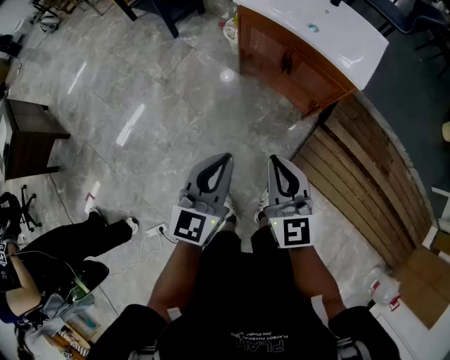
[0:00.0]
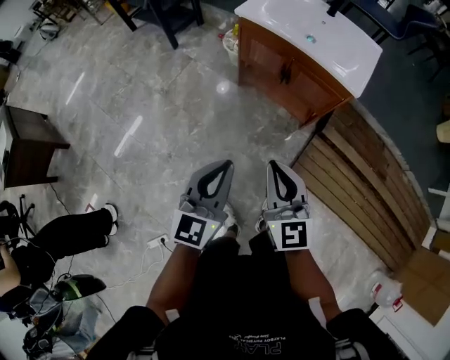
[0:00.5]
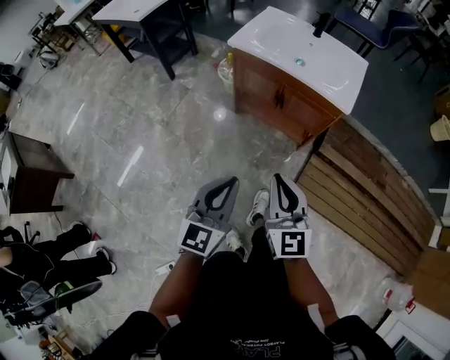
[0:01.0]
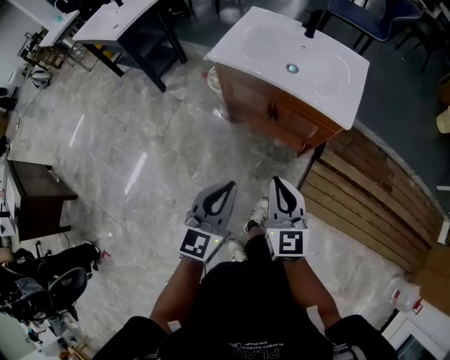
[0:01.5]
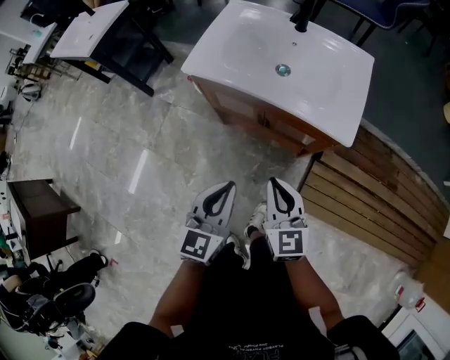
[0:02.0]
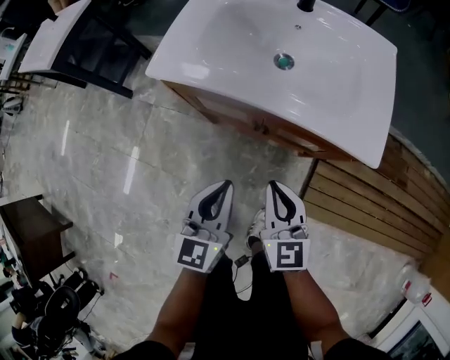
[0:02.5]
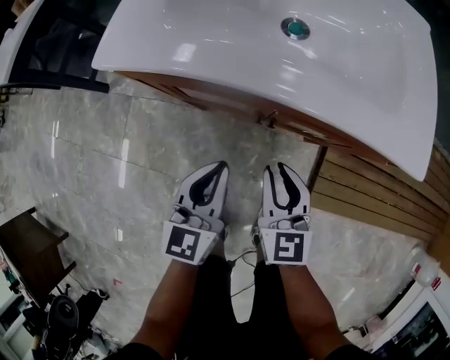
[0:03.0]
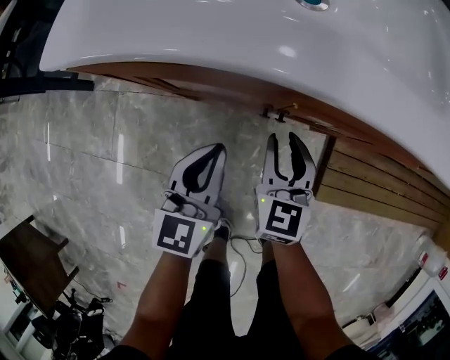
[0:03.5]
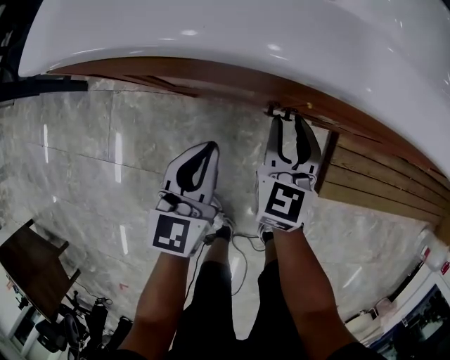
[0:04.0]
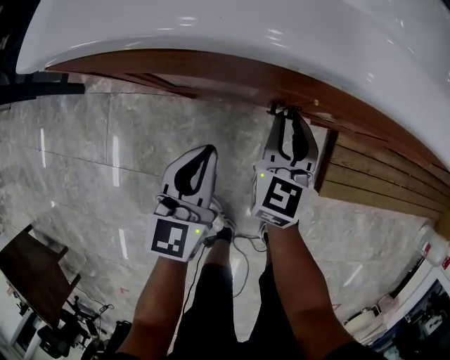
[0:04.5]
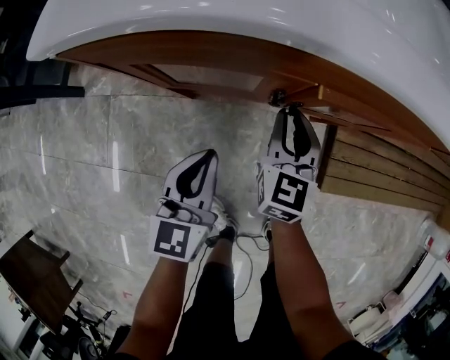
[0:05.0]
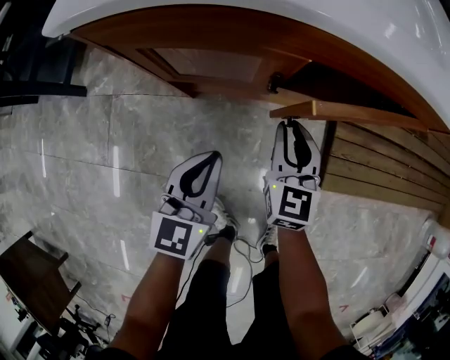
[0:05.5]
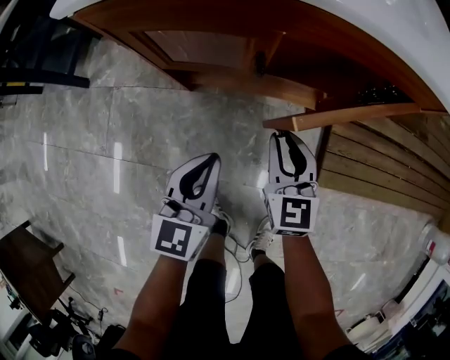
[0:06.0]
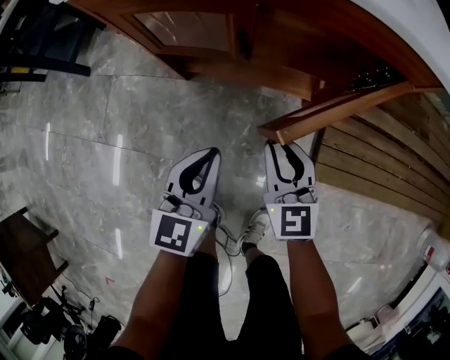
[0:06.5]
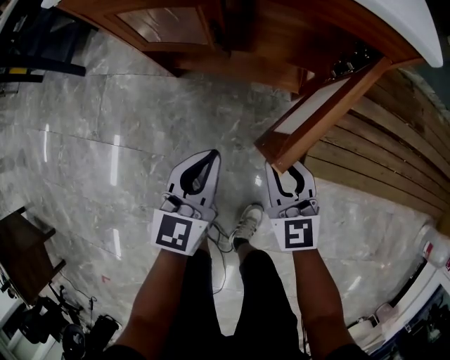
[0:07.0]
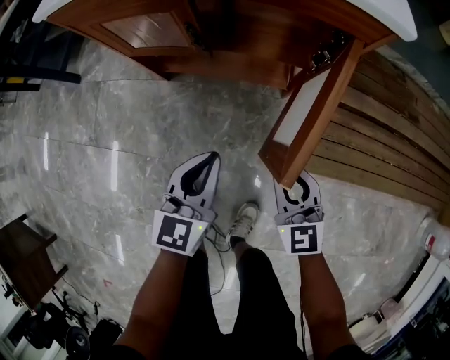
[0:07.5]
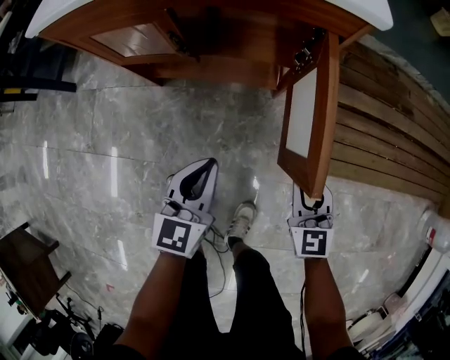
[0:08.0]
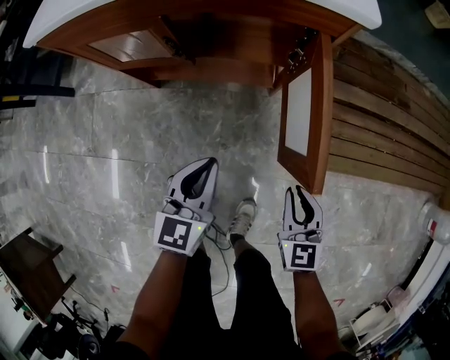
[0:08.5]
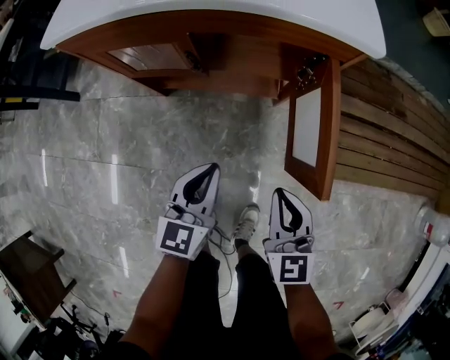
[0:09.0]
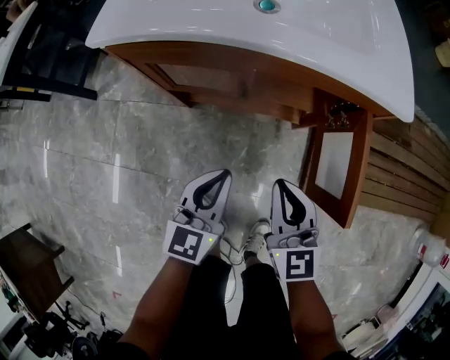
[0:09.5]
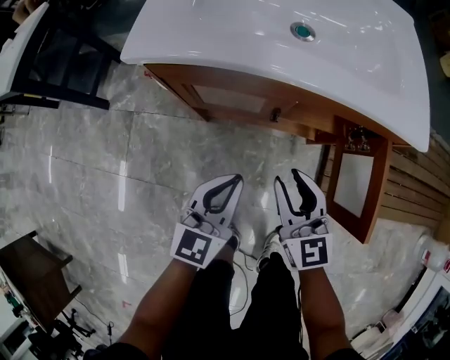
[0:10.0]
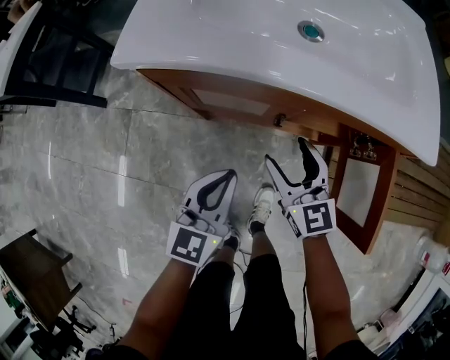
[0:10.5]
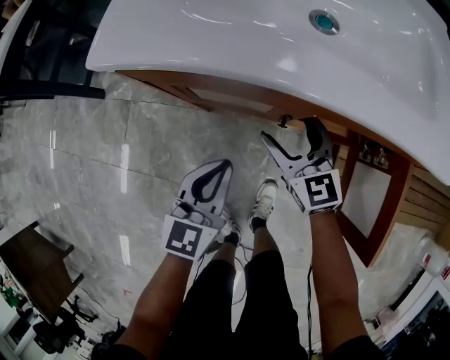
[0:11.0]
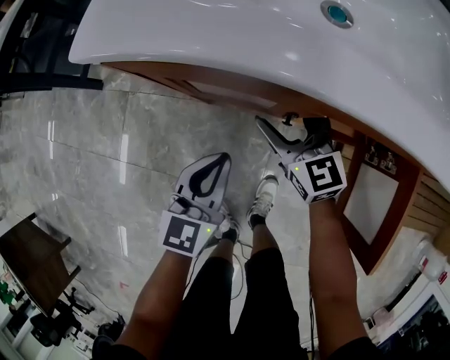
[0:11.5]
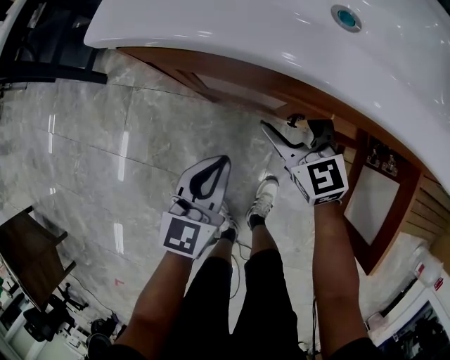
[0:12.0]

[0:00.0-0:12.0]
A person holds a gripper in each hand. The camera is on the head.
0:00.0 to 0:02.0: Both grippers travel together forward, about 25 cm.
0:02.0 to 0:04.0: The grippers both shift downward and forward by some 40 cm. The right gripper swivels some 30 degrees.
0:04.0 to 0:06.0: The left gripper is displaced backward and to the right by roughly 10 cm, while the right gripper travels backward by roughly 10 cm.
0:06.0 to 0:08.0: The left gripper moves to the right and backward, approximately 15 cm. Meanwhile the right gripper travels to the right and backward by roughly 25 cm.
0:08.0 to 0:10.0: The left gripper is displaced to the left, upward and forward by roughly 20 cm. The right gripper shifts approximately 30 cm to the left, upward and forward.
0:10.0 to 0:12.0: The right gripper travels forward and downward by about 20 cm, and opens. The left gripper travels downward and forward by roughly 10 cm.

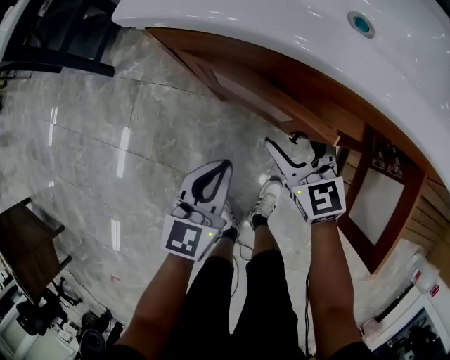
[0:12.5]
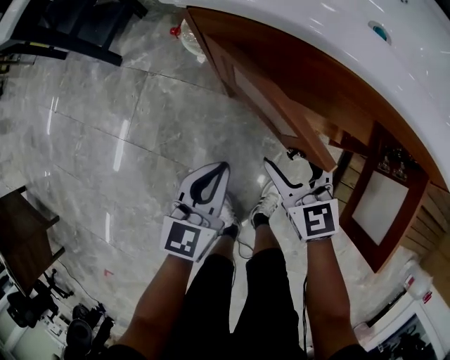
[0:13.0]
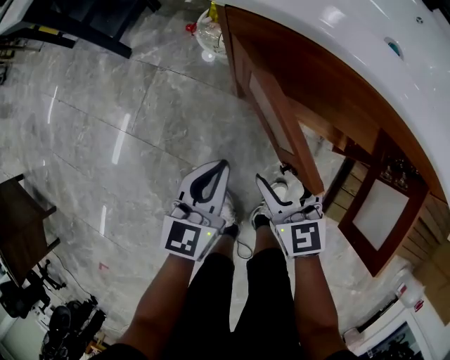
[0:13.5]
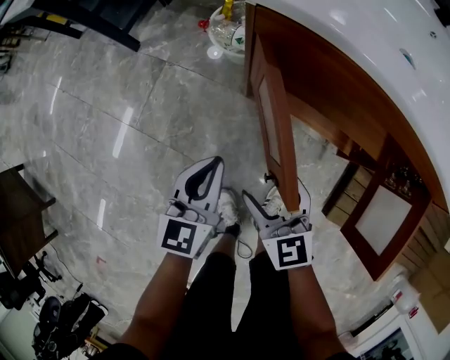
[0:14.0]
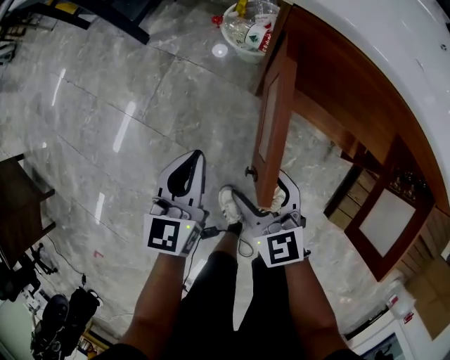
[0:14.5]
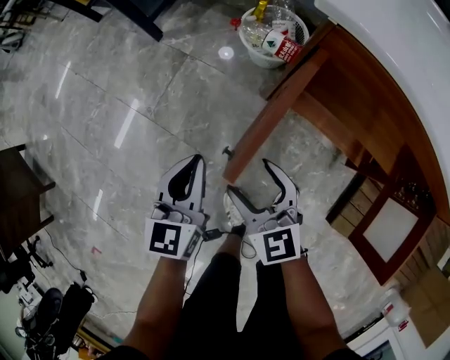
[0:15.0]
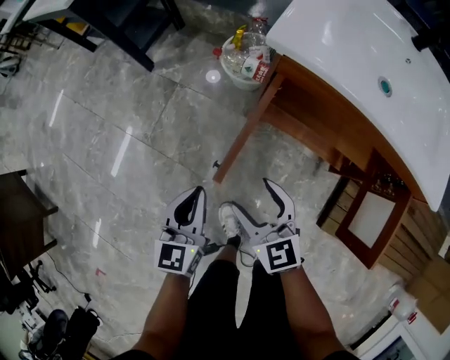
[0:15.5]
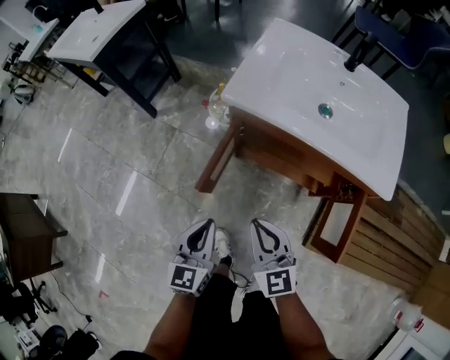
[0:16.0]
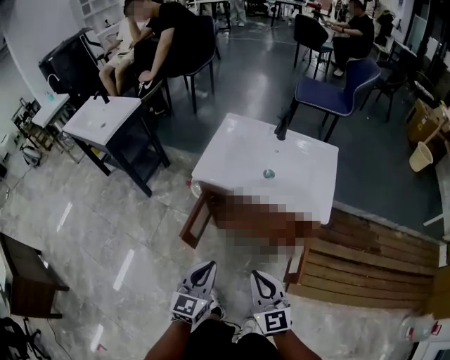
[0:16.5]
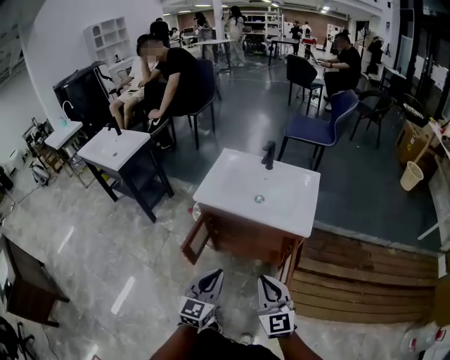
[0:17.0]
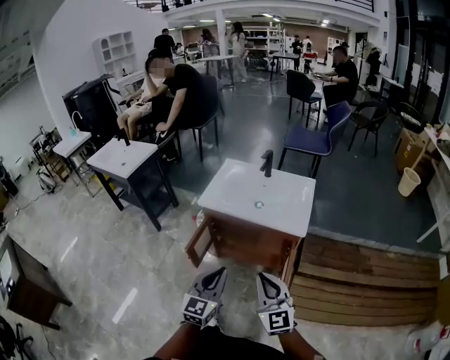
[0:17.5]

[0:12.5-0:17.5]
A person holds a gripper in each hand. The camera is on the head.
0:12.5 to 0:15.0: The grippers both shift to the left by approximately 25 cm. The left gripper swivels approximately 20 degrees; the right gripper turns by roughly 20 degrees.
0:15.0 to 0:17.5: The two grippers go some 60 cm upward, to the right and backward. The right gripper swivels about 40 degrees, and closes, while the left gripper swivels about 30 degrees.

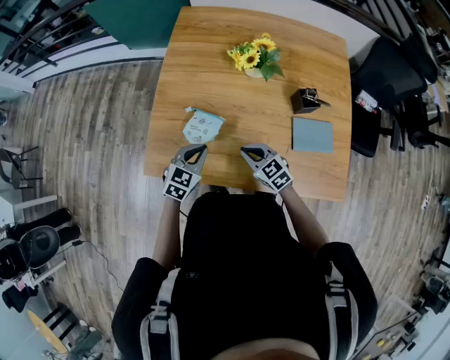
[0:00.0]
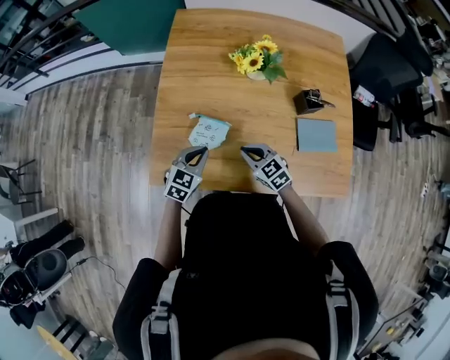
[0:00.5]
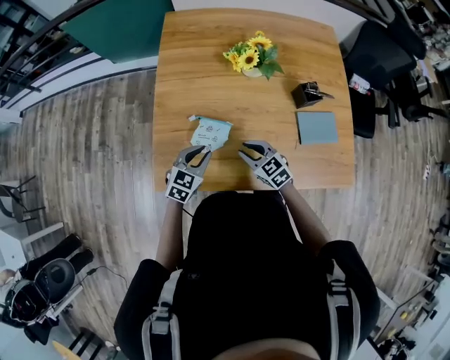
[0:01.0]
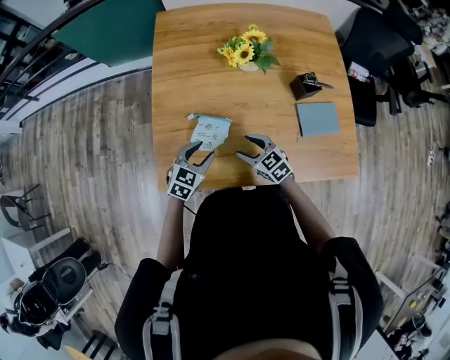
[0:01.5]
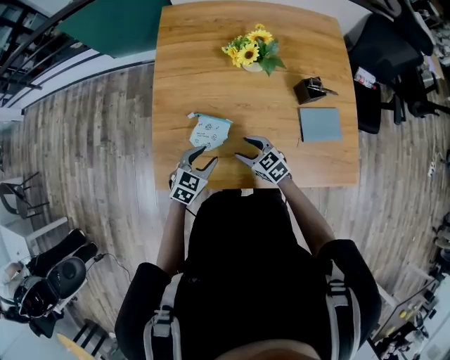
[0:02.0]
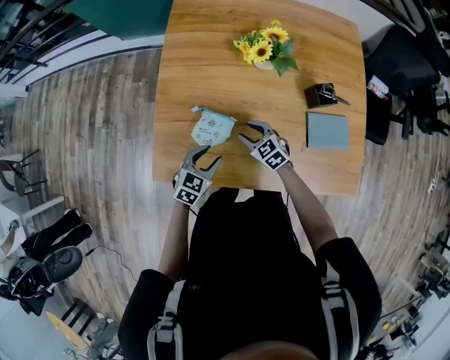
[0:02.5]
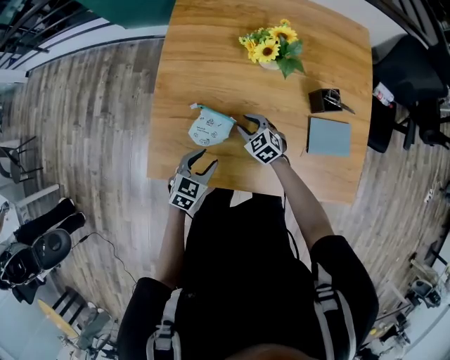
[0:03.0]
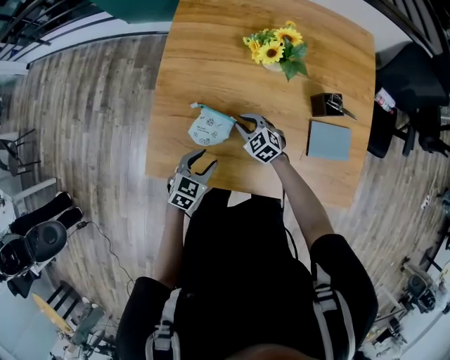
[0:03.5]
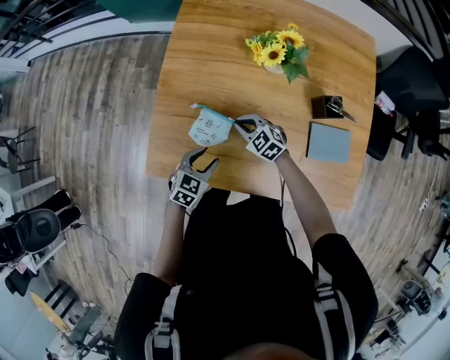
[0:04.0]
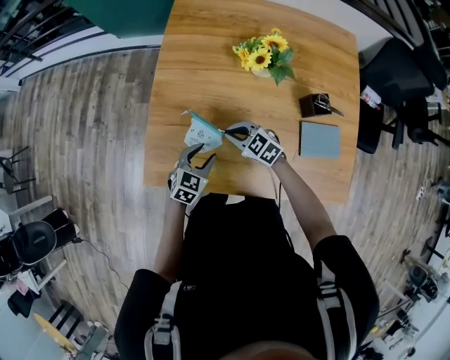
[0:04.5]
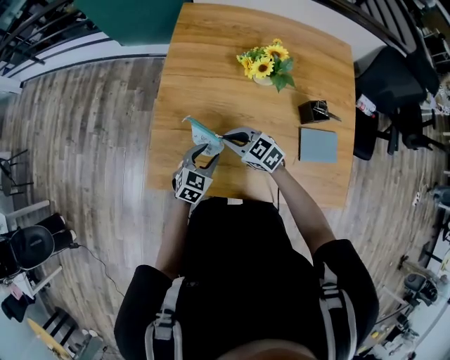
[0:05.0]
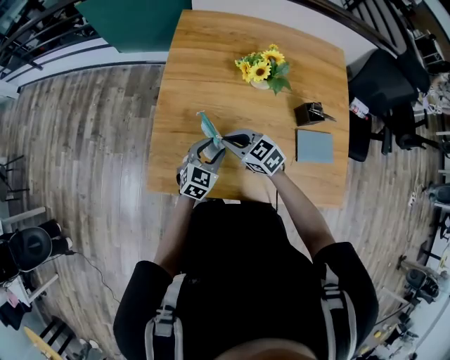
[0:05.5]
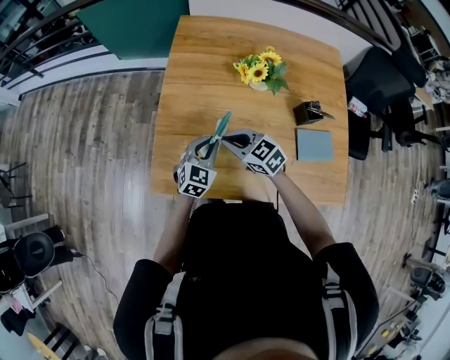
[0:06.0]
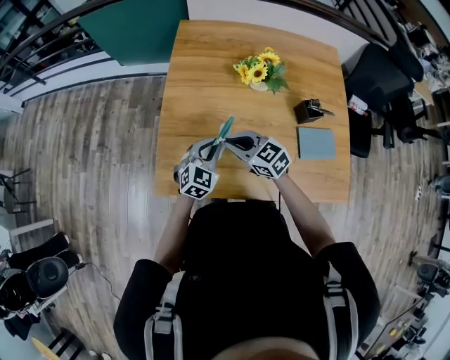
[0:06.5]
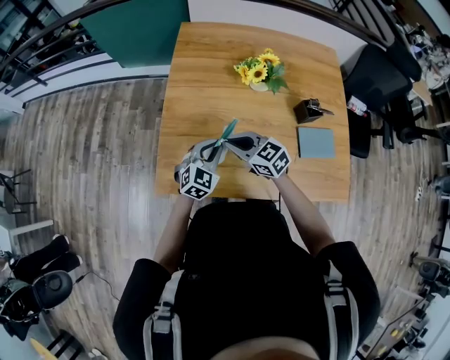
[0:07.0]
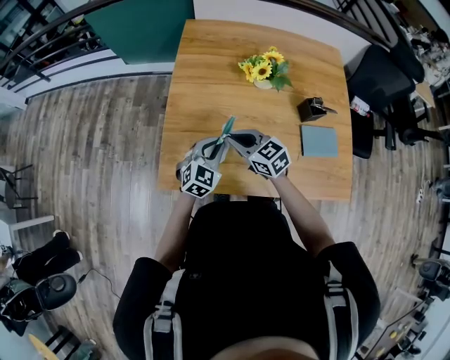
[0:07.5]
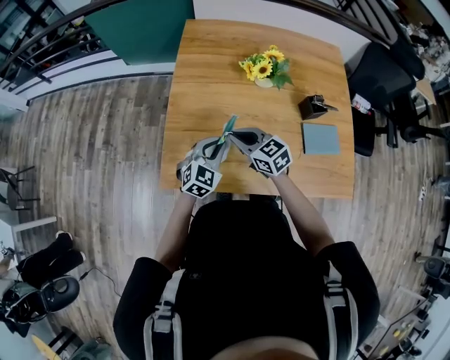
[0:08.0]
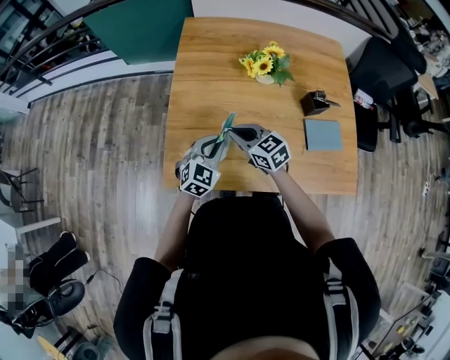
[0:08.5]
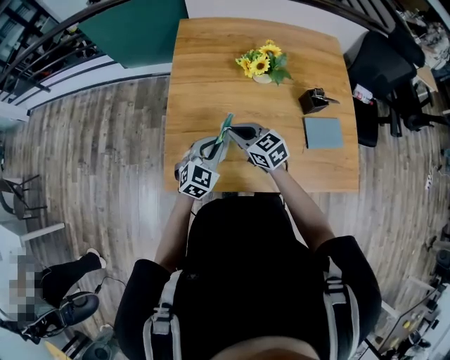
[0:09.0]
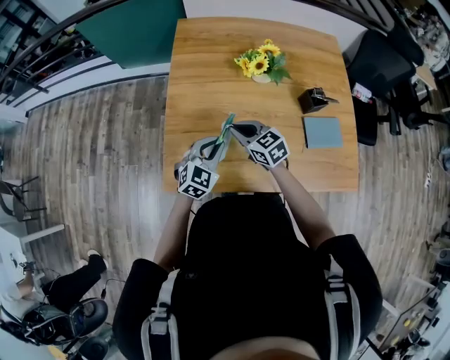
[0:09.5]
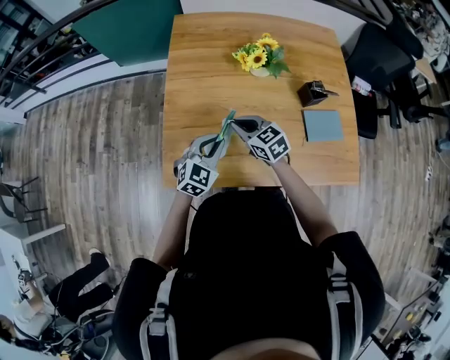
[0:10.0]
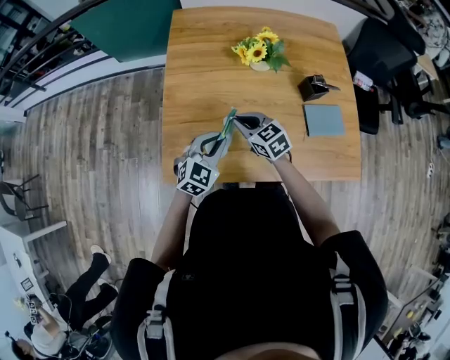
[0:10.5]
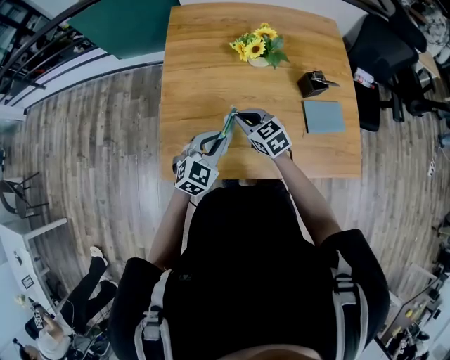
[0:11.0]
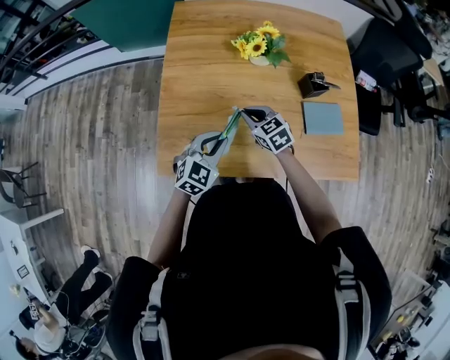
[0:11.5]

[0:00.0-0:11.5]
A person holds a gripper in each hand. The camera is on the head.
0:00.0 to 0:02.0: The right gripper shifts by roughly 5 cm, and opens, while the left gripper shifts by roughly 5 cm, and opens up.
0:02.0 to 0:04.0: The right gripper shifts approximately 10 cm forward, swivels about 20 degrees, and closes.
0:04.0 to 0:06.0: The left gripper moves upward and forward, approximately 10 cm, turns by some 20 degrees, and closes its fingers. The right gripper moves upward and to the left, about 15 cm.
0:06.0 to 0:09.5: There are only small adjustments of the grippers.
0:09.5 to 0:11.5: The left gripper changes place by about 5 cm, while the right gripper is displaced to the right by some 5 cm.
